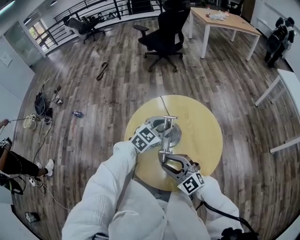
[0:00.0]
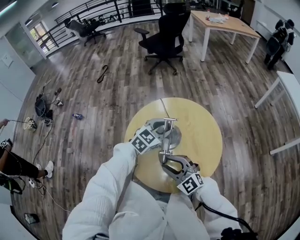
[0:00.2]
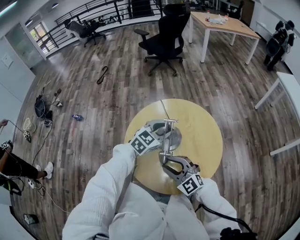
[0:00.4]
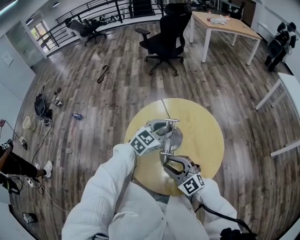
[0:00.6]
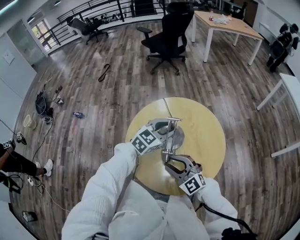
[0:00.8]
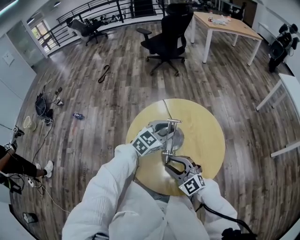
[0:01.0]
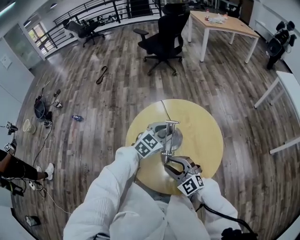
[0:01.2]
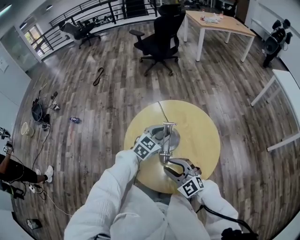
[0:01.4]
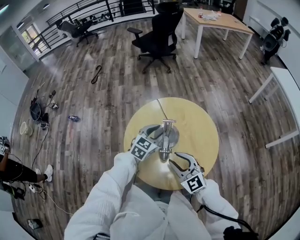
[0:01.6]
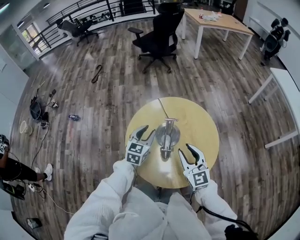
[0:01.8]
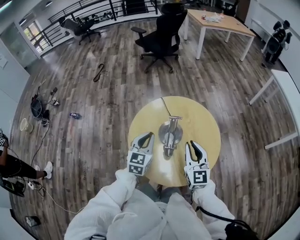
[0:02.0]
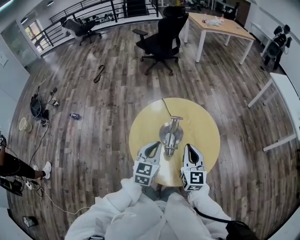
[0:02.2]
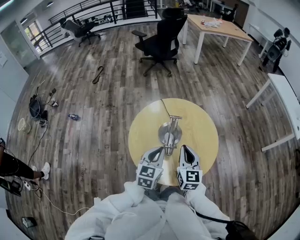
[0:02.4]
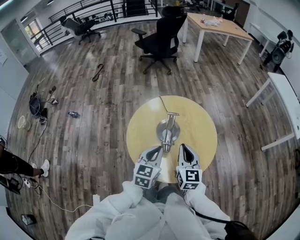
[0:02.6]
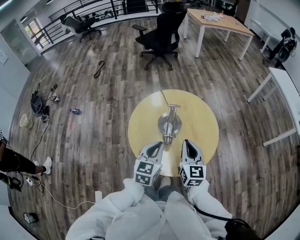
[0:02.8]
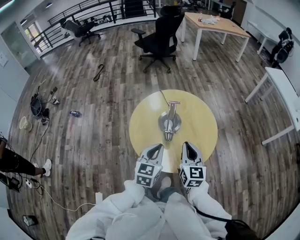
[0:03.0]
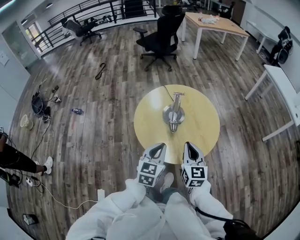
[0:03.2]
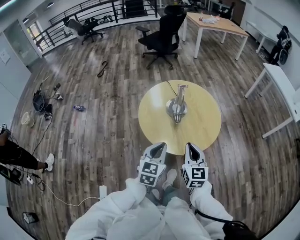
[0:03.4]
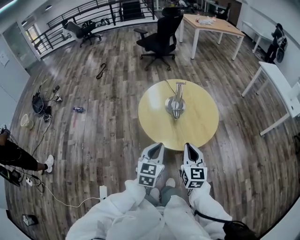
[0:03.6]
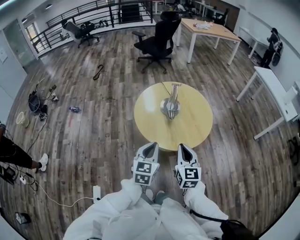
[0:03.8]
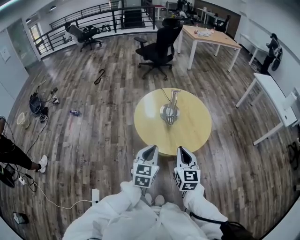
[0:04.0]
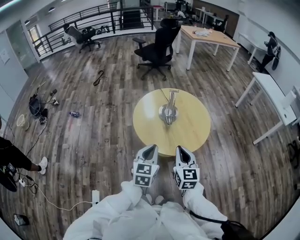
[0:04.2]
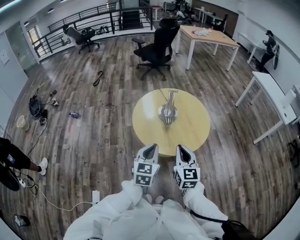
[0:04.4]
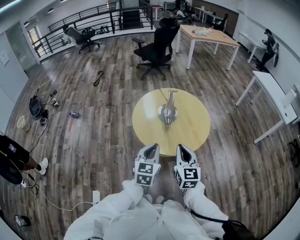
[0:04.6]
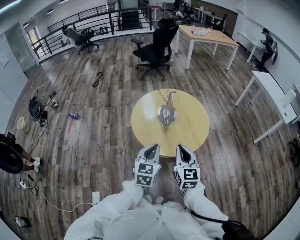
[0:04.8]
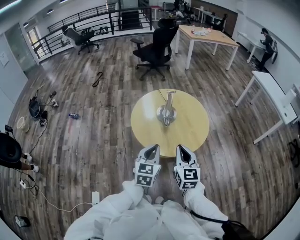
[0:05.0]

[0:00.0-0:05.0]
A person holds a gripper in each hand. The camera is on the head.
0:00.0 to 0:01.6: The grippers stay close to where they were, moving slightly.
0:01.6 to 0:03.4: The left gripper goes approximately 35 cm backward, and closes its fingers. Meanwhile the right gripper heads backward, covering some 20 cm, changes its angle by some 40 degrees, and closes.
0:03.4 to 0:05.0: The right gripper moves about 5 cm; the left gripper ends up some 5 cm from where it was.

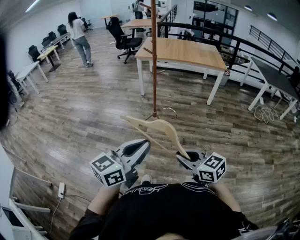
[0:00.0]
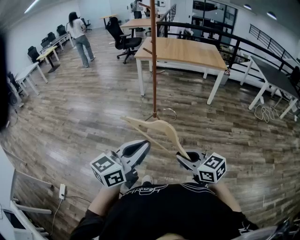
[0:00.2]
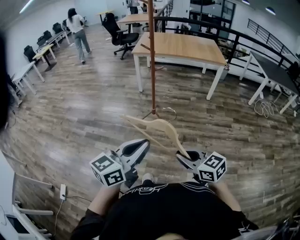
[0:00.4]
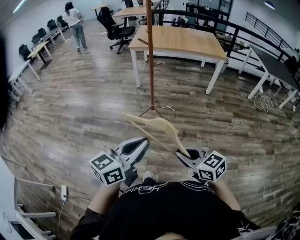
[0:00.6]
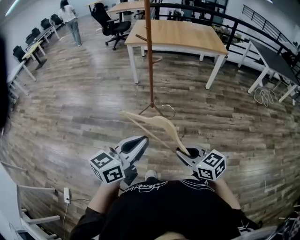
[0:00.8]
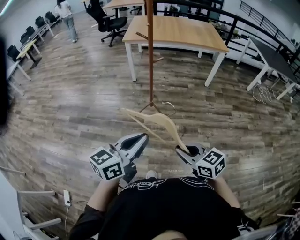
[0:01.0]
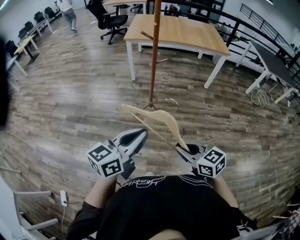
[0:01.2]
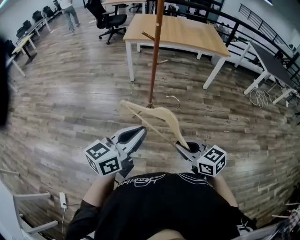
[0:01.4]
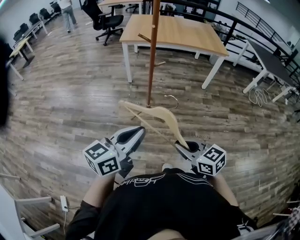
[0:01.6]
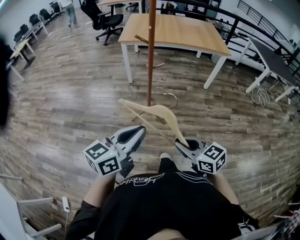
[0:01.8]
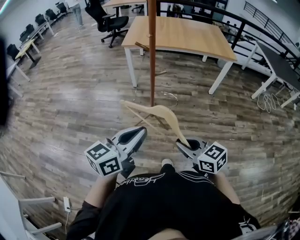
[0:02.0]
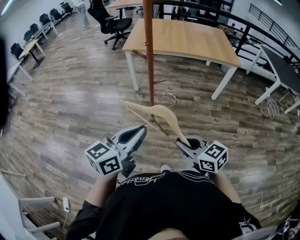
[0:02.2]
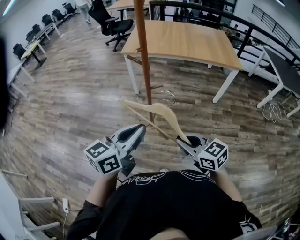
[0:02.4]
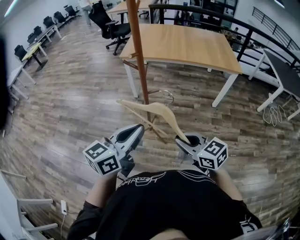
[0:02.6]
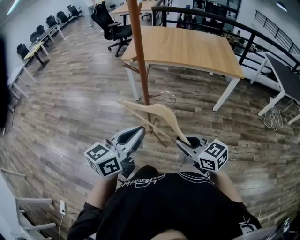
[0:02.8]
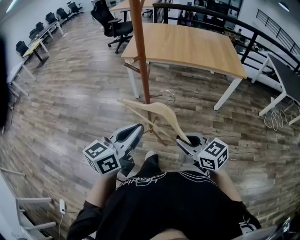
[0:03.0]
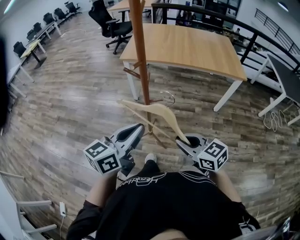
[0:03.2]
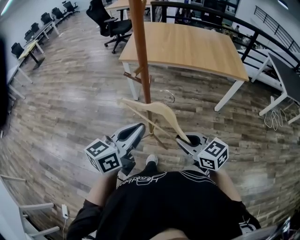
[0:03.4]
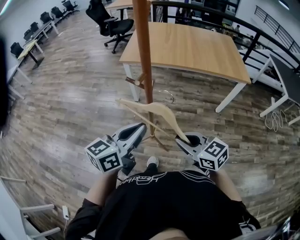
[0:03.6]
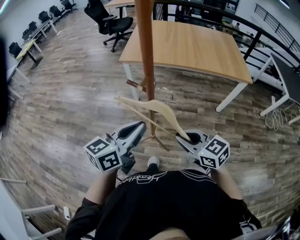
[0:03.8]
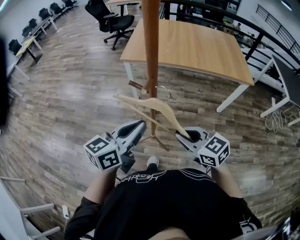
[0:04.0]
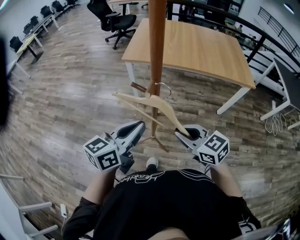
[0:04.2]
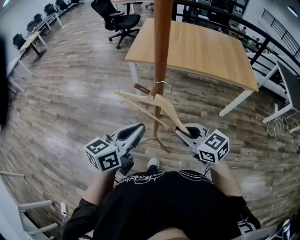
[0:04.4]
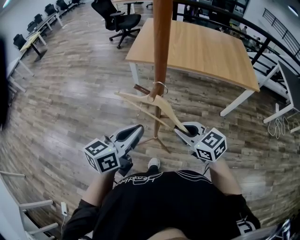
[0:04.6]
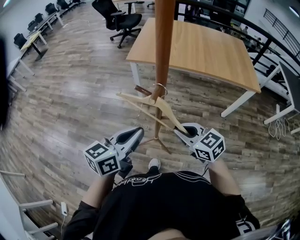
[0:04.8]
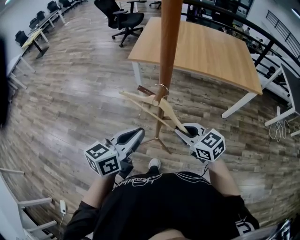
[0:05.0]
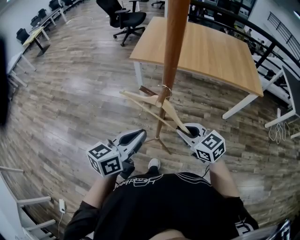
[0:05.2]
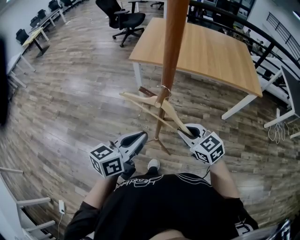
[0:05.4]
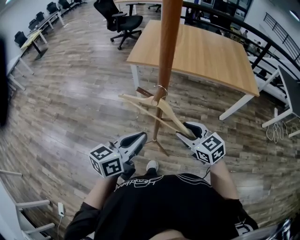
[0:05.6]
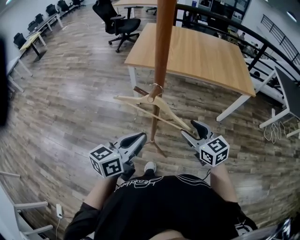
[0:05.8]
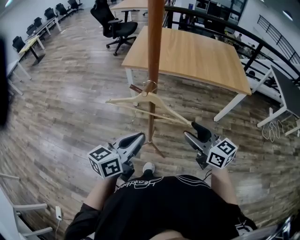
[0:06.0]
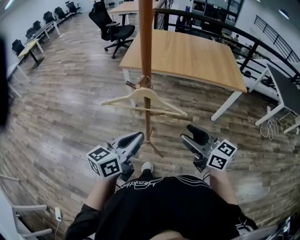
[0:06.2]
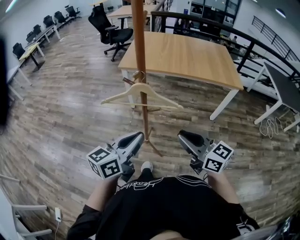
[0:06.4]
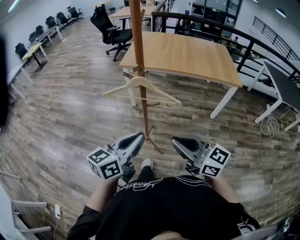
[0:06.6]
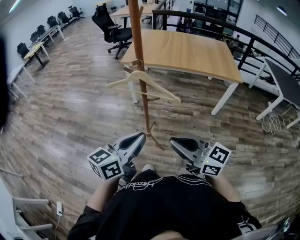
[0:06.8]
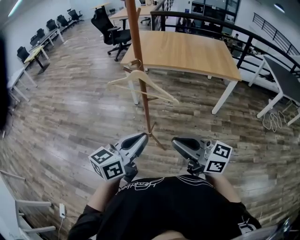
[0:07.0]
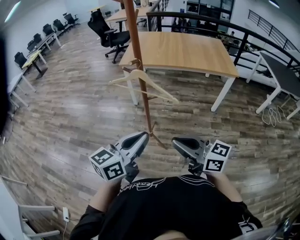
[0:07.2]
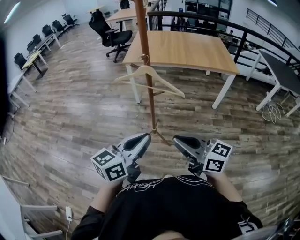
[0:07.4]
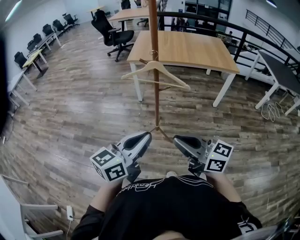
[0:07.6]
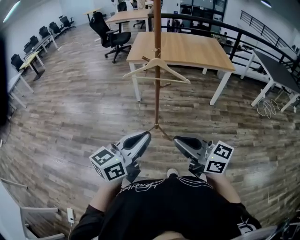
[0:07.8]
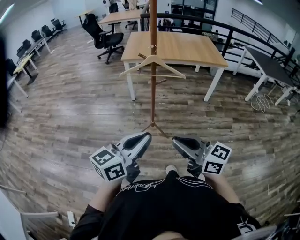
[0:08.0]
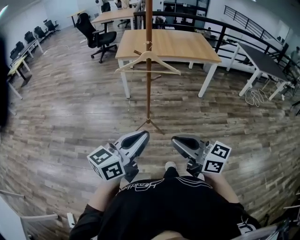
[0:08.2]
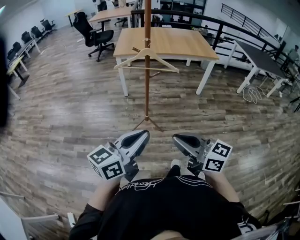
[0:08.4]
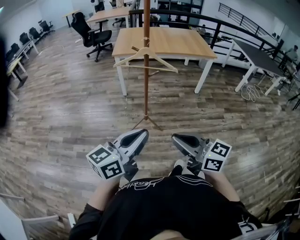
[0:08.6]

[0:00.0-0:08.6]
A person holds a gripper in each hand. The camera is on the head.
0:00.0 to 0:01.4: Both grippers move forward and to the left, some 25 cm.
0:01.4 to 0:02.8: The grippers both shift forward and to the right by about 25 cm.
0:02.8 to 0:04.4: The grippers both shift forward by about 20 cm.
0:04.4 to 0:05.8: The right gripper goes approximately 5 cm to the right, and opens its fingers.
0:05.8 to 0:07.2: Both grippers move backward, about 25 cm. The right gripper swivels roughly 30 degrees, and closes its fingers.
0:07.2 to 0:08.6: Both grippers move backward and to the left, roughly 25 cm.

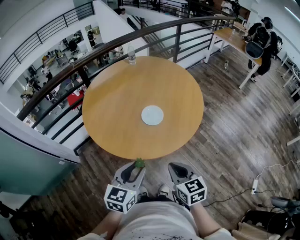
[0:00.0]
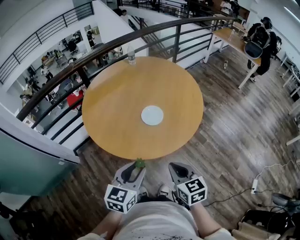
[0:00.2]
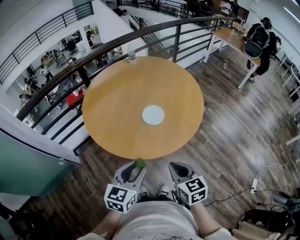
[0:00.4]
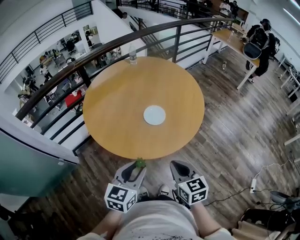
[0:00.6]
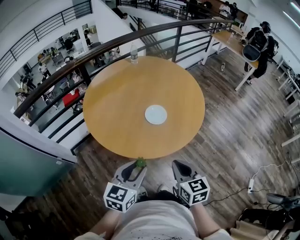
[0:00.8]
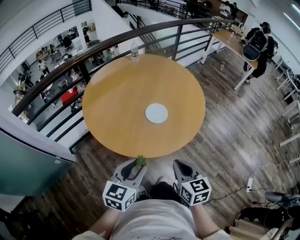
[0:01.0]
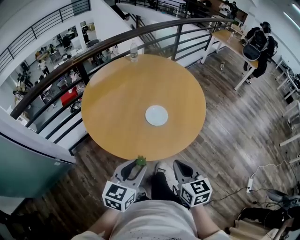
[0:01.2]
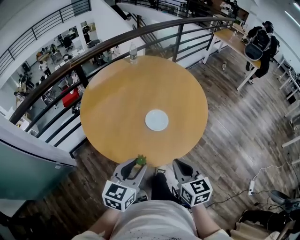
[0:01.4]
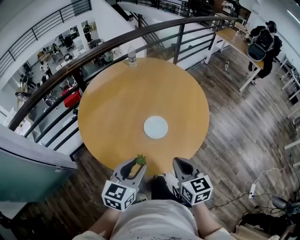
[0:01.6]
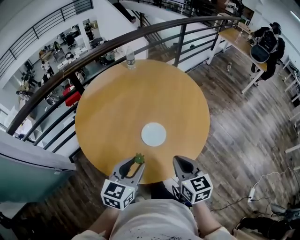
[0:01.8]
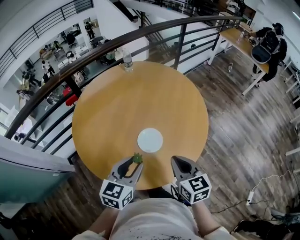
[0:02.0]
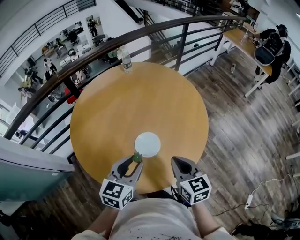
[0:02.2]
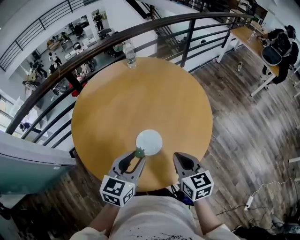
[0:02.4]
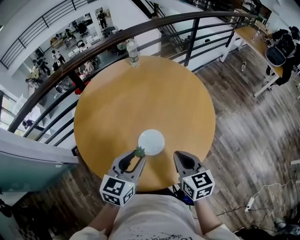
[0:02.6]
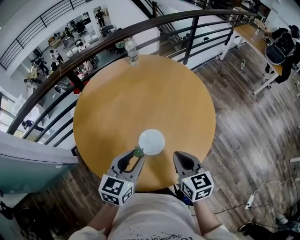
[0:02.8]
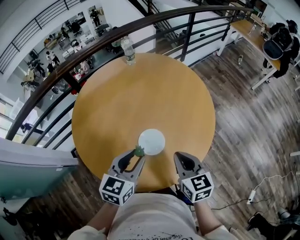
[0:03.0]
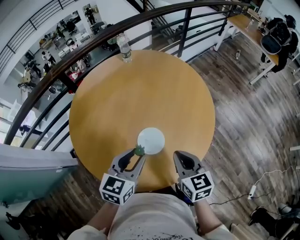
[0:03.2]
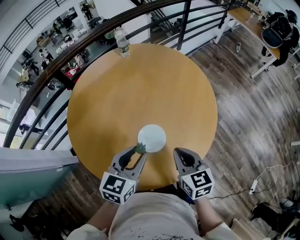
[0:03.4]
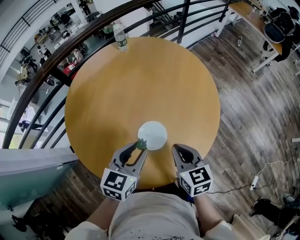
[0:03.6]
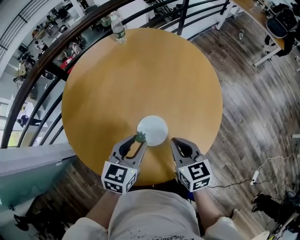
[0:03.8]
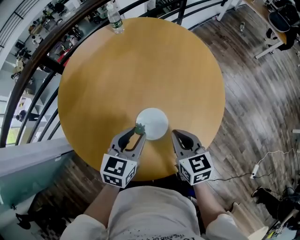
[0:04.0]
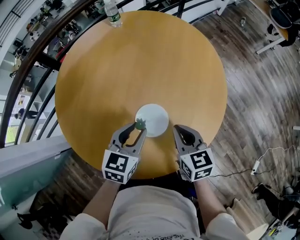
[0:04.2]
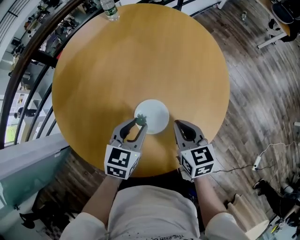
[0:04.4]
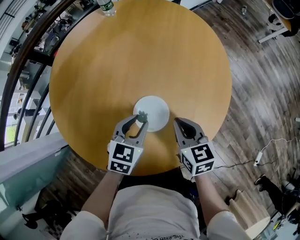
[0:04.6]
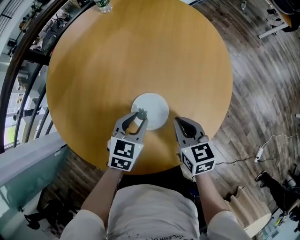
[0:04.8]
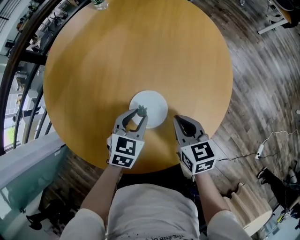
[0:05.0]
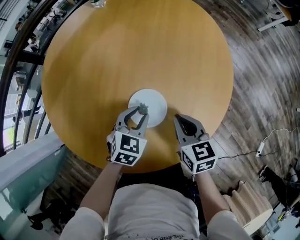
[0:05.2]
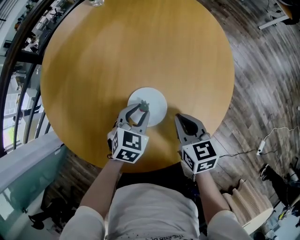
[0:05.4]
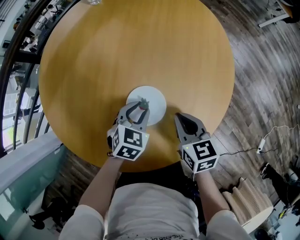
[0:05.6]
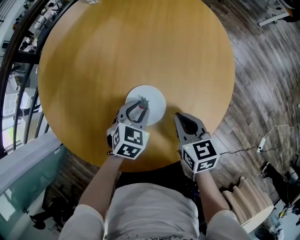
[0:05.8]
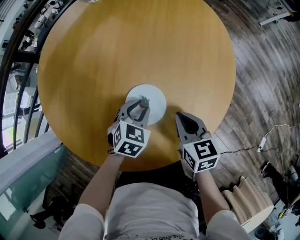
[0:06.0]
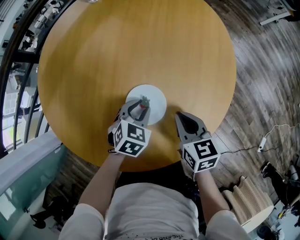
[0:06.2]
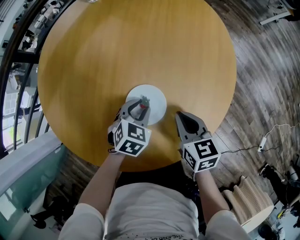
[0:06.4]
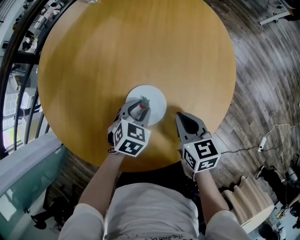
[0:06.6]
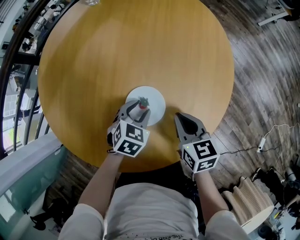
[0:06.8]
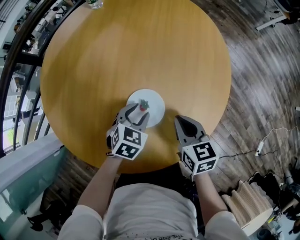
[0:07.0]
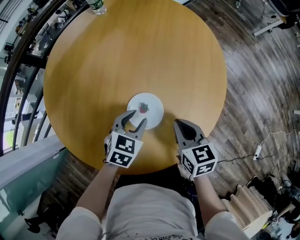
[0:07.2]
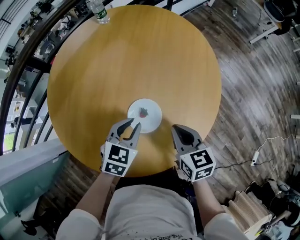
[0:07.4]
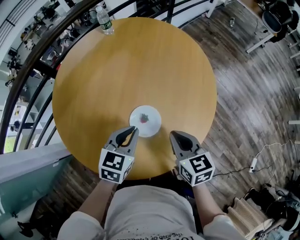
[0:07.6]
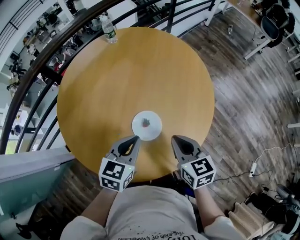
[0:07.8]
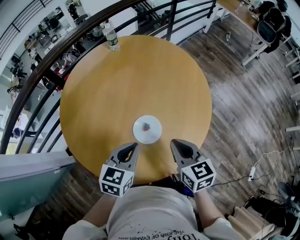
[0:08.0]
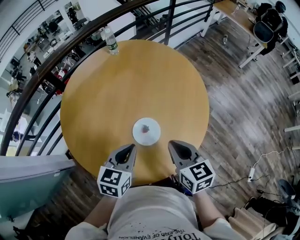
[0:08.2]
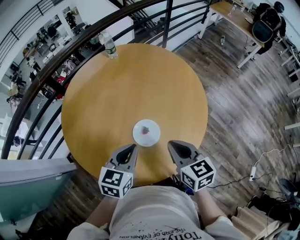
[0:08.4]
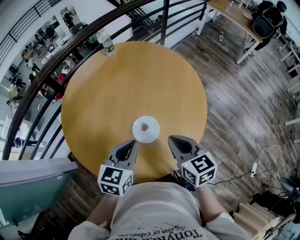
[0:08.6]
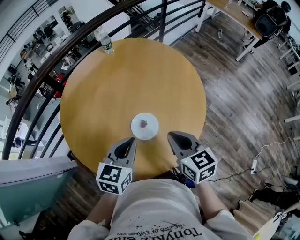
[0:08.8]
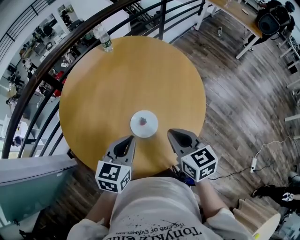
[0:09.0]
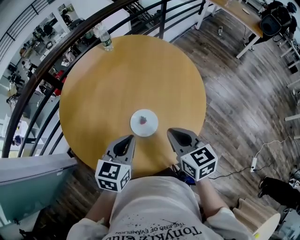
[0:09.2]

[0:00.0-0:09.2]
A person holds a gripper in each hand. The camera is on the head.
0:00.0 to 0:01.6: Both grippers travel together forward, some 15 cm.
0:01.6 to 0:03.0: Both grippers travel together forward, approximately 15 cm.
0:03.0 to 0:04.6: Both grippers travel together downward and forward, roughly 15 cm.
0:04.6 to 0:06.2: The left gripper heads downward, covering approximately 10 cm. The right gripper moves downward, approximately 5 cm.
0:06.2 to 0:07.6: Both grippers move upward, some 15 cm. The left gripper swivels approximately 20 degrees, and closes its fingers.
0:07.6 to 0:09.2: The right gripper travels upward by approximately 10 cm; the left gripper is displaced upward and backward by approximately 10 cm.

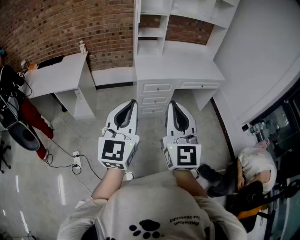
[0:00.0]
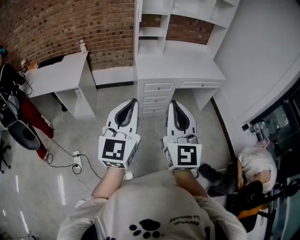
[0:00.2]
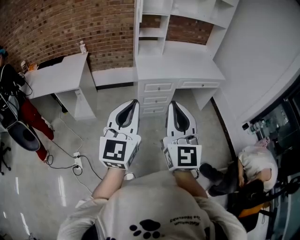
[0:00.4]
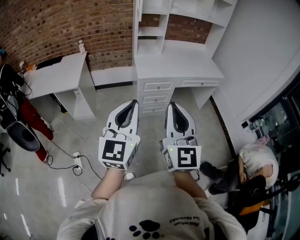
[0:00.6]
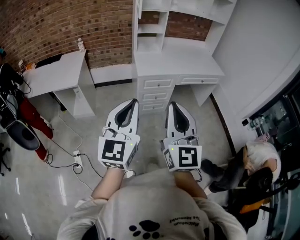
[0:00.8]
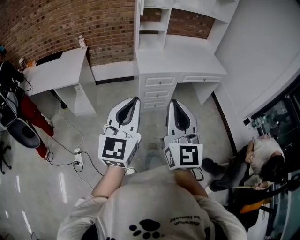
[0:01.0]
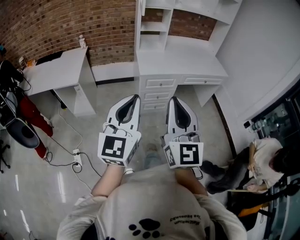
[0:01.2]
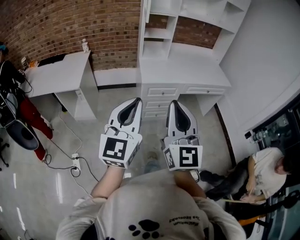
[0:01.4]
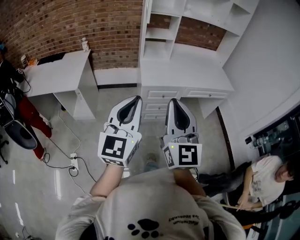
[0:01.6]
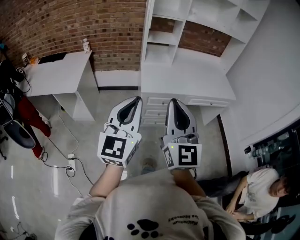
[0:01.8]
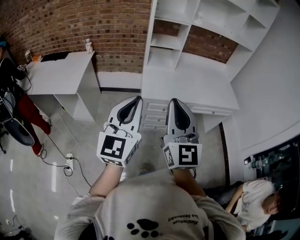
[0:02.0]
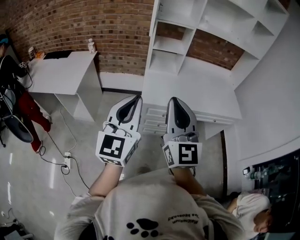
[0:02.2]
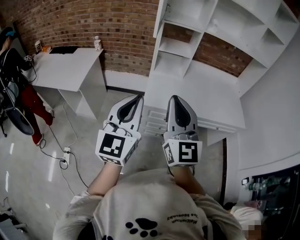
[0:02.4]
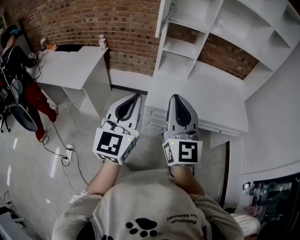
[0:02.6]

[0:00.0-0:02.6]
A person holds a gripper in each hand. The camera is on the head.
0:00.0 to 0:01.2: There are only small adjustments of the grippers.
0:01.2 to 0:02.6: The grippers both shift forward by approximately 30 cm.
